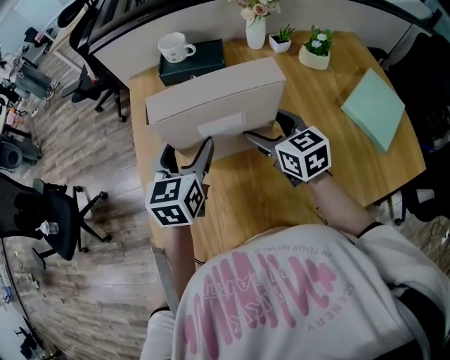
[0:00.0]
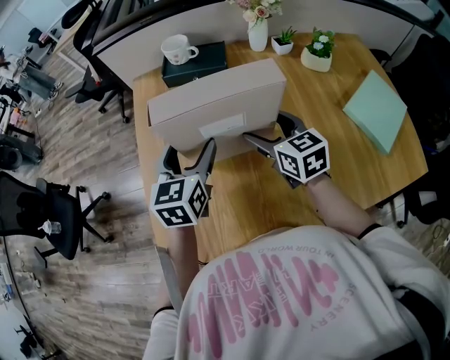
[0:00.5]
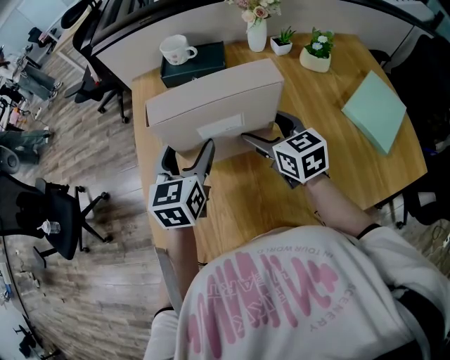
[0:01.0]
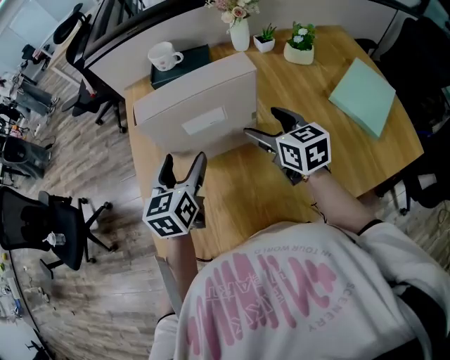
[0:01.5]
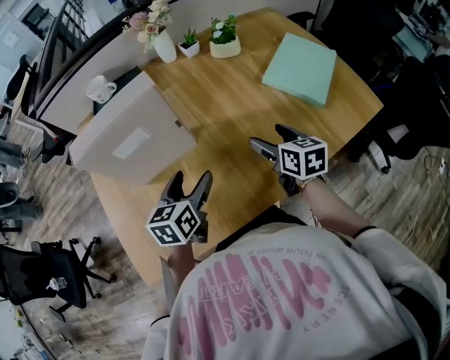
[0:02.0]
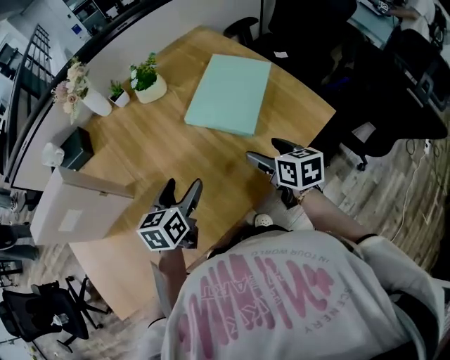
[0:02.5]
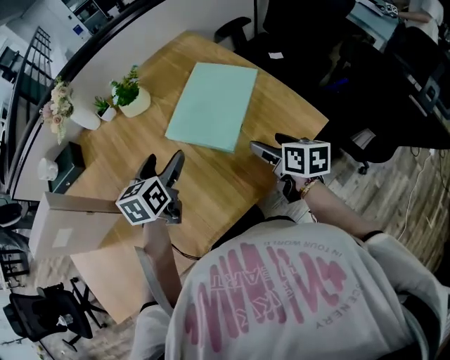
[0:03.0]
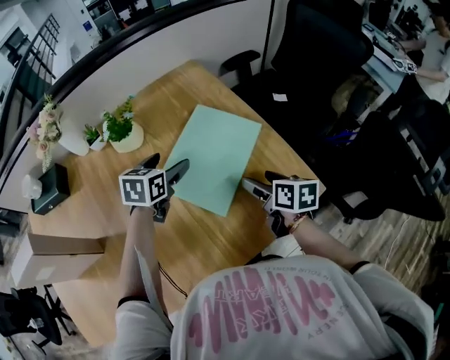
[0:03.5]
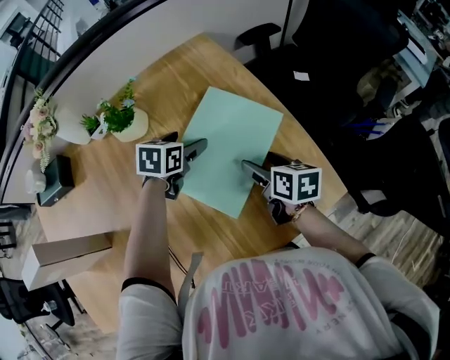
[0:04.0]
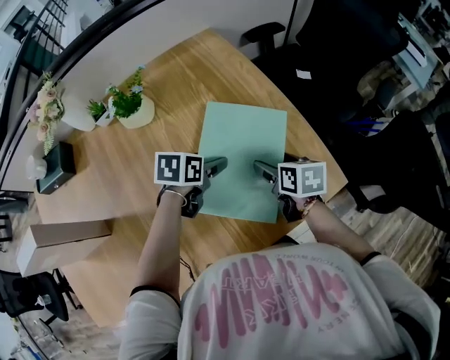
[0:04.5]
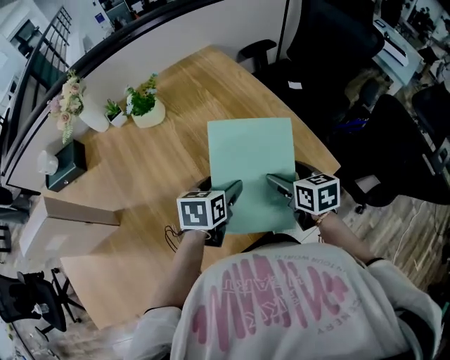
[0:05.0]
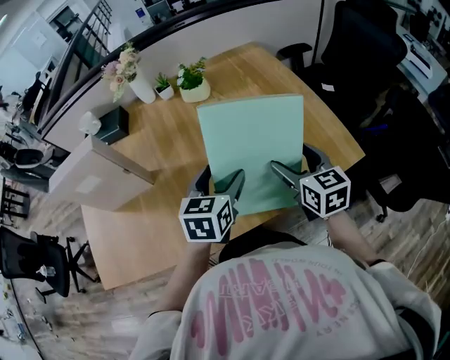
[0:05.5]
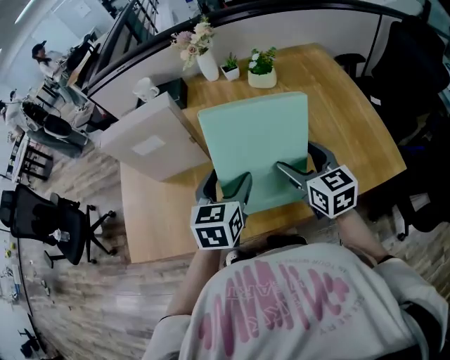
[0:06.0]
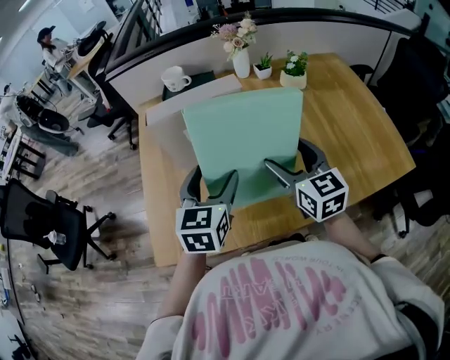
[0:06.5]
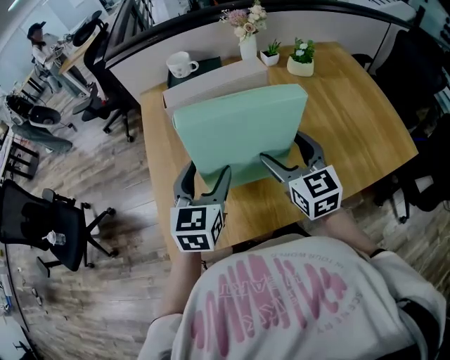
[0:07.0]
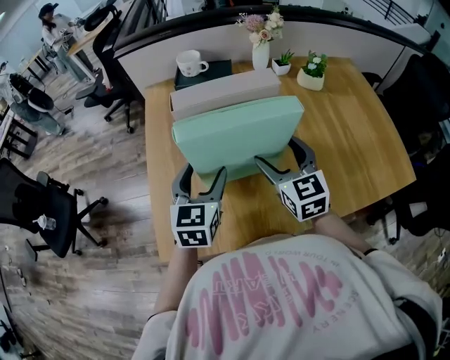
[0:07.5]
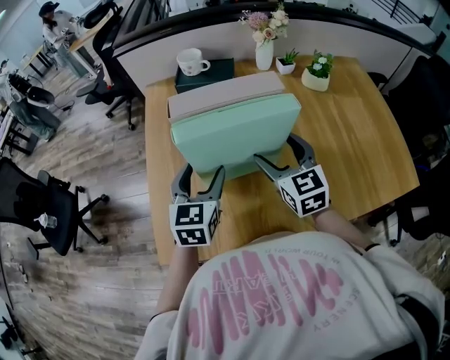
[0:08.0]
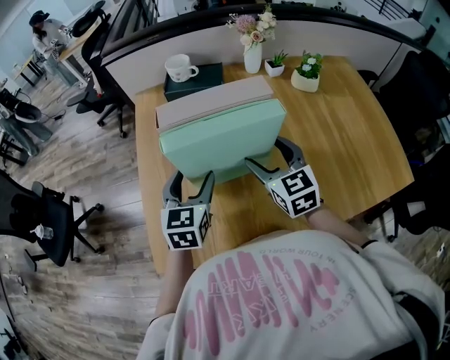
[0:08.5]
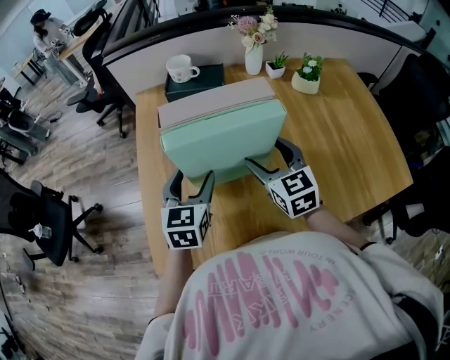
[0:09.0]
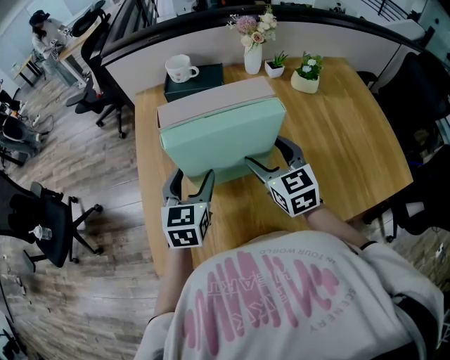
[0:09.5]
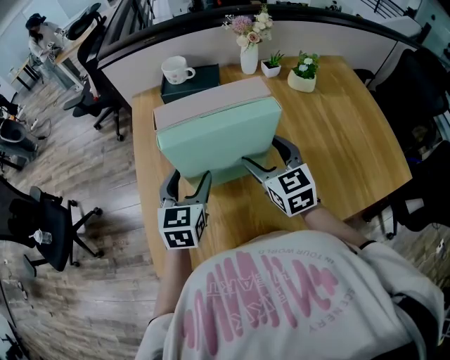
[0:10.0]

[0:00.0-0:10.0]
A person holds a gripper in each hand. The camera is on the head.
0:00.0 to 0:02.0: The left gripper is displaced to the right, backward and downward by about 20 cm, and swivels some 20 degrees. The right gripper heads to the right and backward, covering about 25 cm, and rotates approximately 30 degrees.
0:02.0 to 0:04.0: The pair of grippers is taken to the right and forward, roughly 50 cm. The left gripper changes its angle by some 30 degrees.
0:04.0 to 0:06.0: The right gripper shifts by roughly 40 cm, and rotates some 40 degrees. Meanwhile the left gripper moves roughly 50 cm, and rotates roughly 40 degrees.
0:06.0 to 0:08.0: Both grippers move to the left, approximately 30 cm.
0:08.0 to 0:10.0: The grippers move only a little.

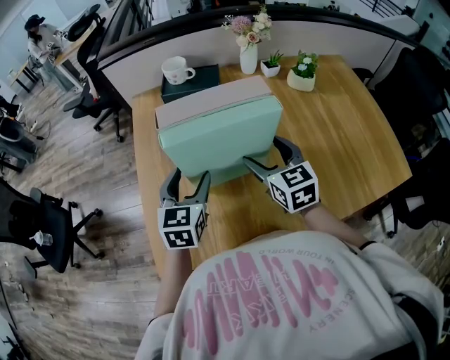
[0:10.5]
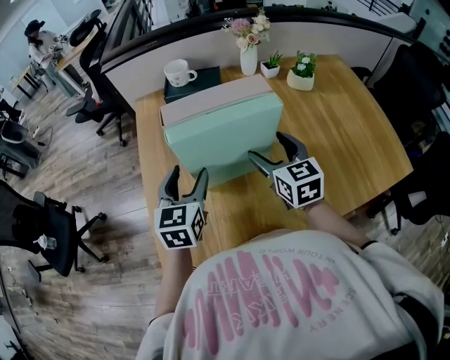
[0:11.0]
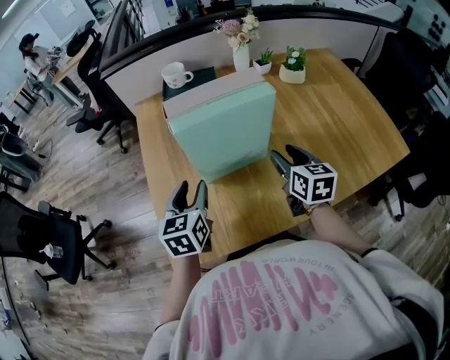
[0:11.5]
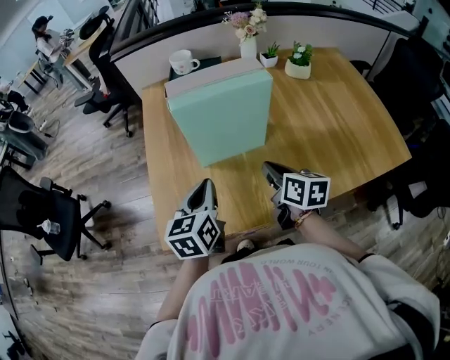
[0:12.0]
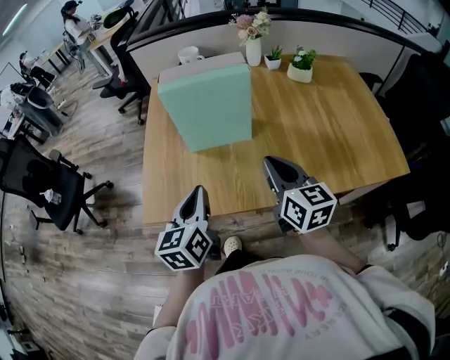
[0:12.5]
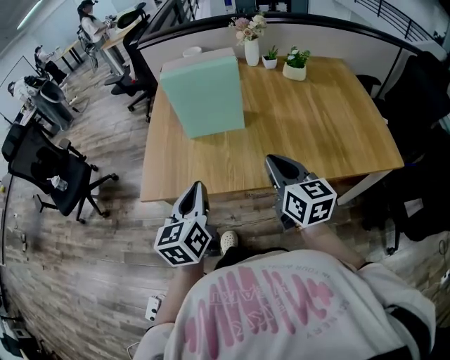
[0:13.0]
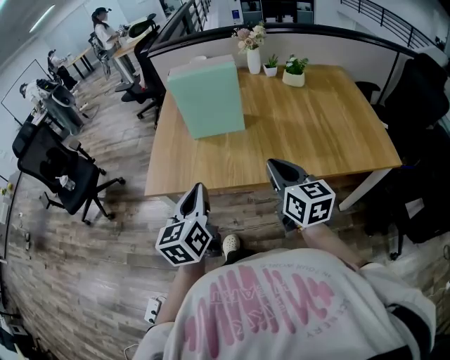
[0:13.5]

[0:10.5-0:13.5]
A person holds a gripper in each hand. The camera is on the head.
0:10.5 to 0:12.0: Both grippers travel together backward, approximately 10 cm. The right gripper swivels some 40 degrees, and closes its fingers. Meanwhile the left gripper swivels approximately 20 degrees, and closes.
0:12.0 to 0:13.5: The right gripper heads backward and upward, covering approximately 20 cm, and changes its angle by roughly 30 degrees. Meanwhile the left gripper moves backward, approximately 20 cm.

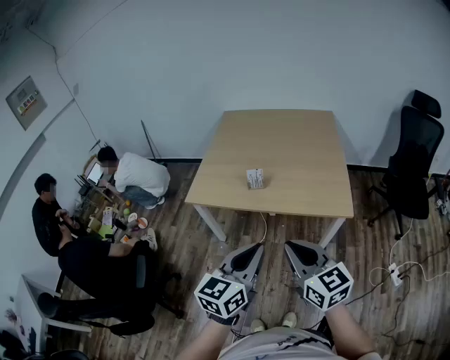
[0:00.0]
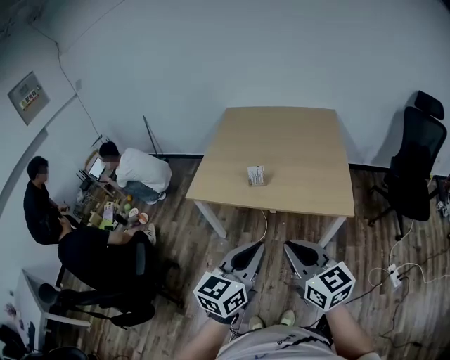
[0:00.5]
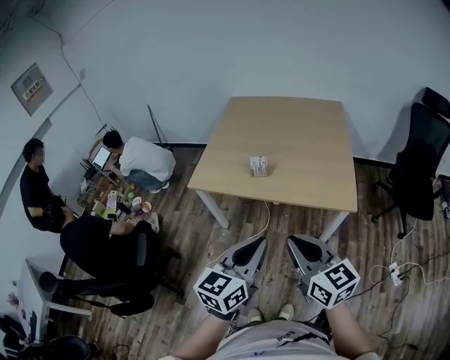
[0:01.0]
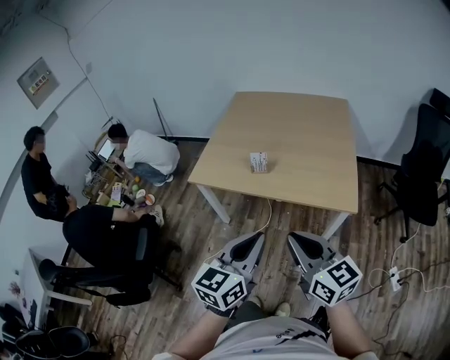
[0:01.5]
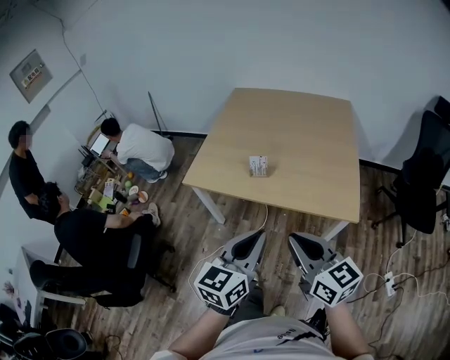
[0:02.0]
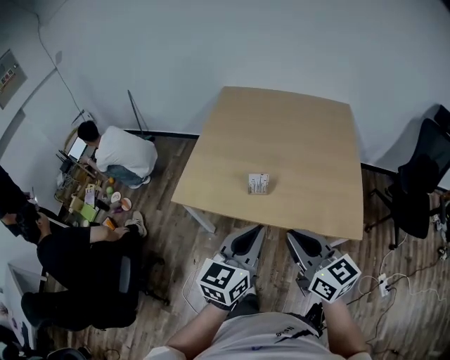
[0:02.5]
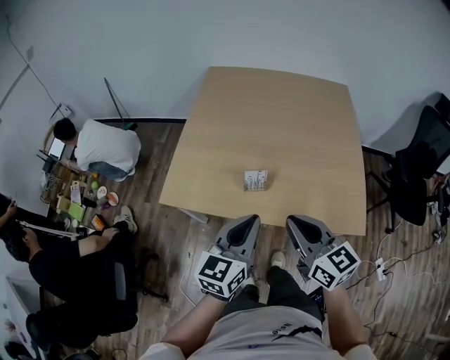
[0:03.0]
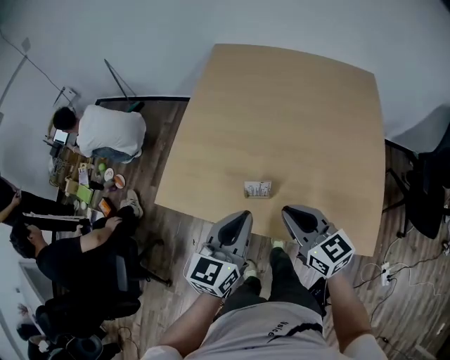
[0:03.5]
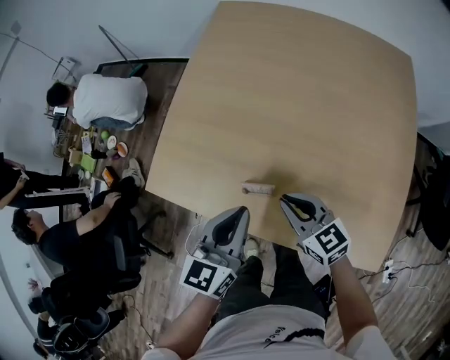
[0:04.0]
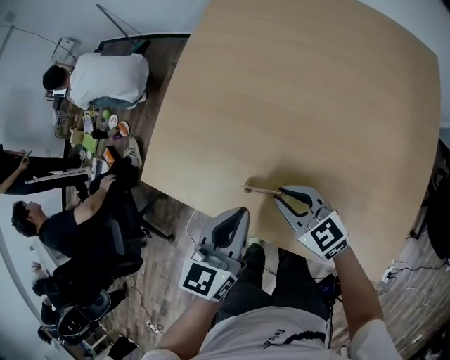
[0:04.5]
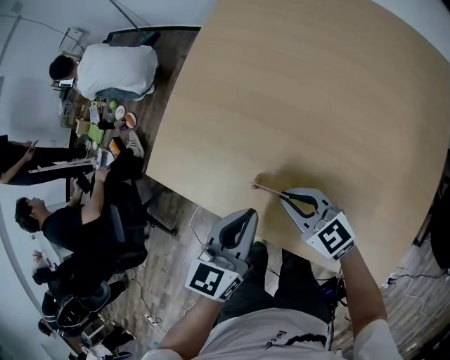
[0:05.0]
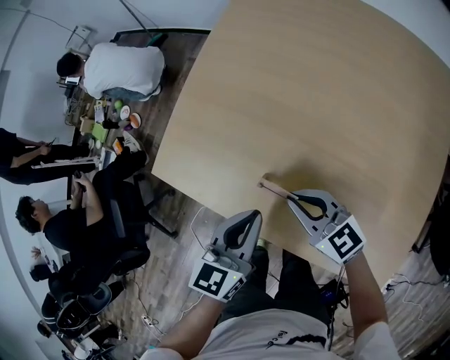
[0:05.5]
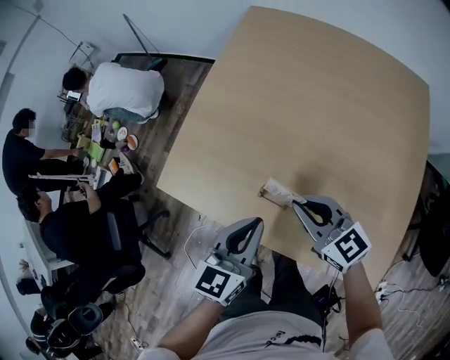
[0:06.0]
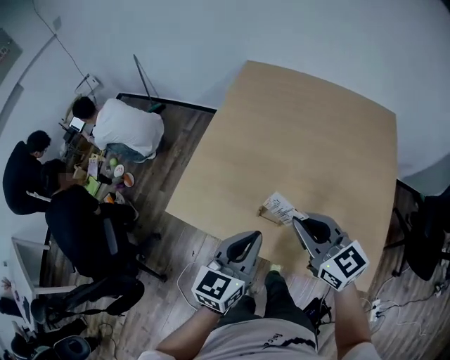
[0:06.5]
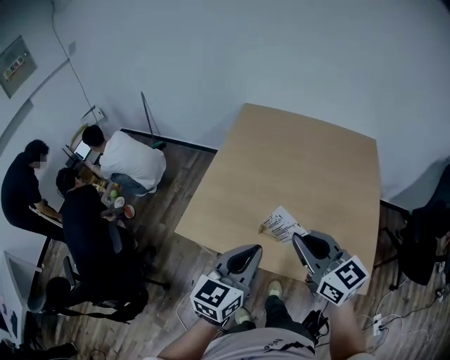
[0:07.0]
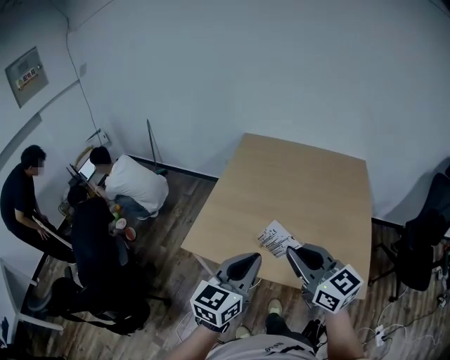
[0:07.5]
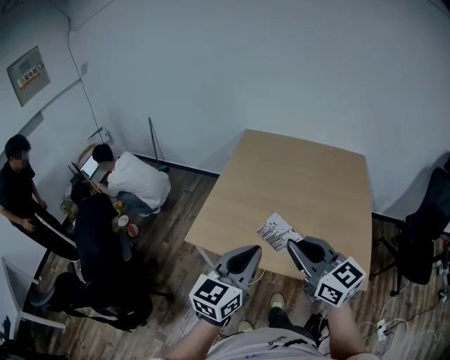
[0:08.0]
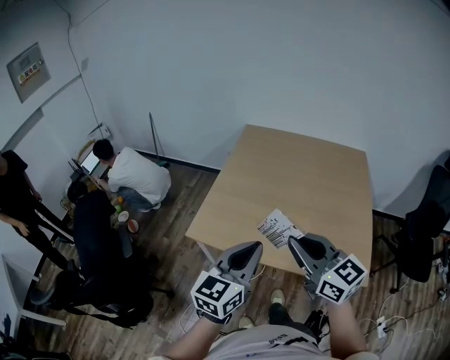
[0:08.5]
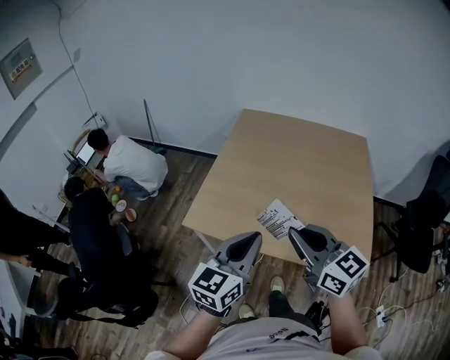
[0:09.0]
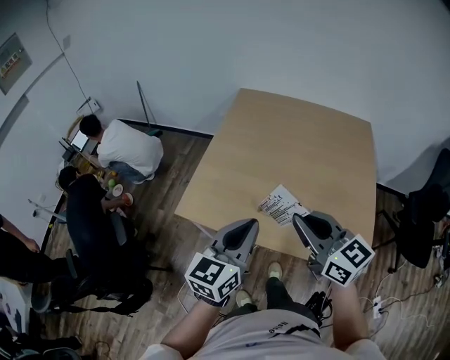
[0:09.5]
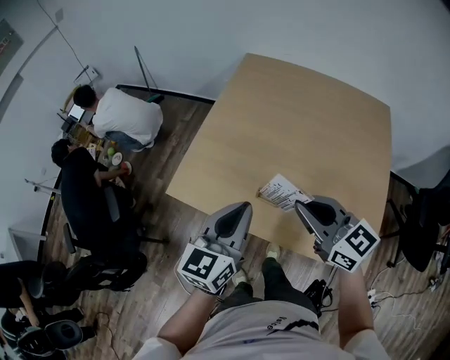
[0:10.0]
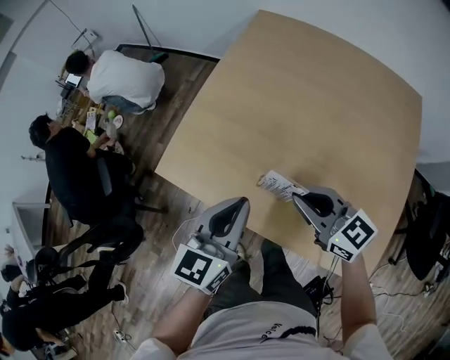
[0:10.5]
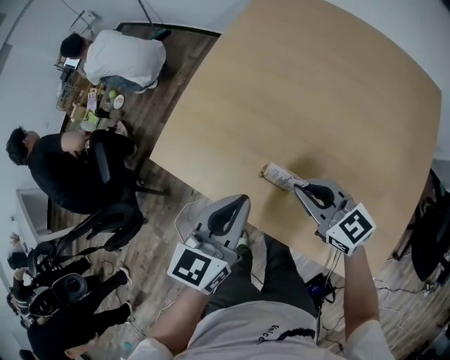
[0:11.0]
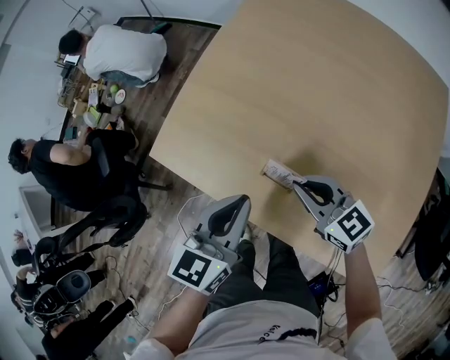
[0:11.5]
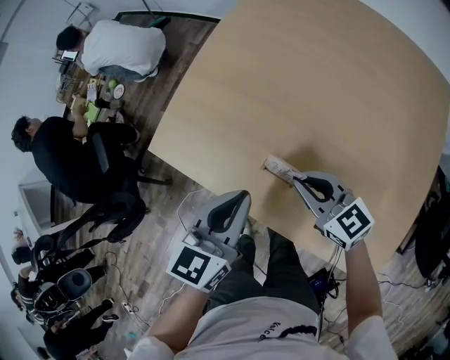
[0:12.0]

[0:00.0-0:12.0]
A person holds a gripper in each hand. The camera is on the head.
0:00.0 to 0:02.0: The grippers both shift forward by approximately 5 cm.
0:02.0 to 0:04.0: The two grippers go some 50 cm forward and downward. The right gripper turns by roughly 20 degrees.
0:04.0 to 0:06.0: The right gripper goes roughly 5 cm upward.
0:06.0 to 0:08.0: Both grippers travel together upward and backward, approximately 30 cm. The right gripper swivels about 20 degrees.
0:08.0 to 0:10.0: The left gripper moves forward and downward, roughly 15 cm; the right gripper moves forward, downward and to the right, some 15 cm.
0:10.0 to 0:12.0: The left gripper travels downward by about 15 cm. Meanwhile the right gripper moves downward, about 25 cm.

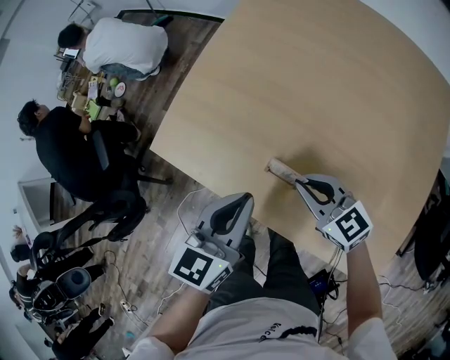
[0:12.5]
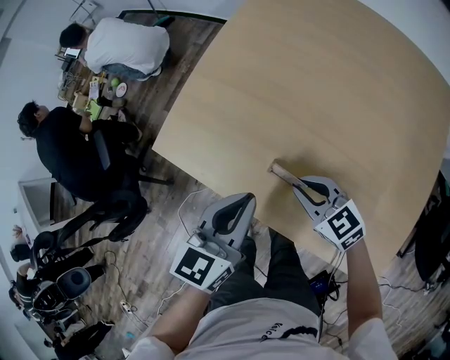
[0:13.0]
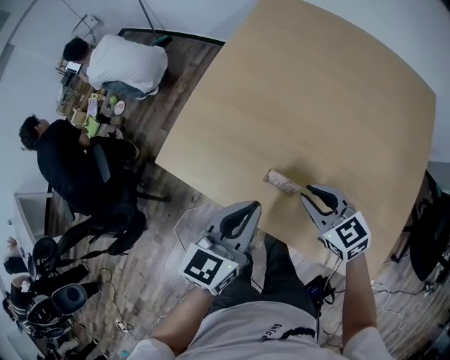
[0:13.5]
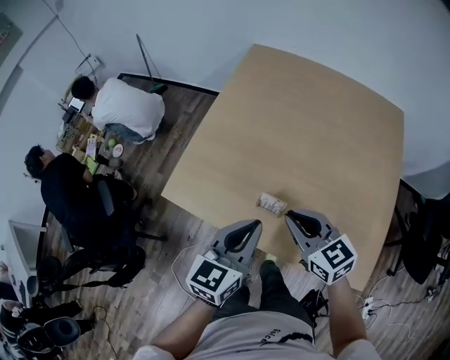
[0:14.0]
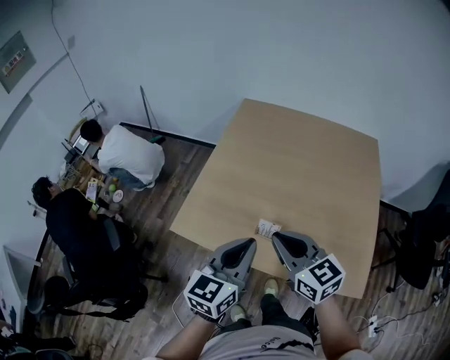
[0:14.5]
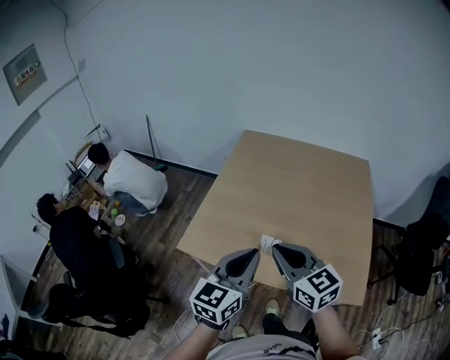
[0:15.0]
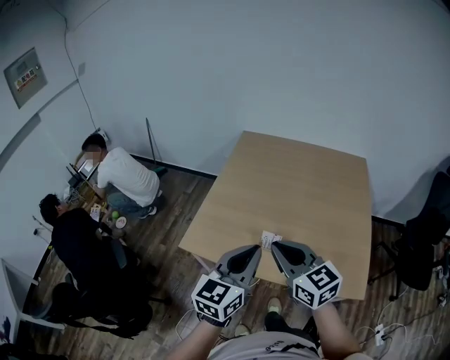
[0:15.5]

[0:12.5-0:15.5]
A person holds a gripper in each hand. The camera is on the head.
0:12.5 to 0:14.0: The right gripper goes approximately 15 cm upward. The left gripper travels upward by about 10 cm.
0:14.0 to 0:15.5: The two grippers go approximately 20 cm upward and backward.
